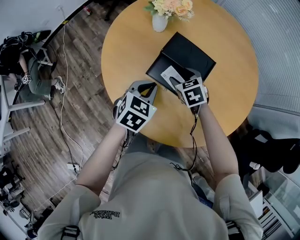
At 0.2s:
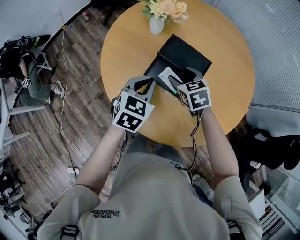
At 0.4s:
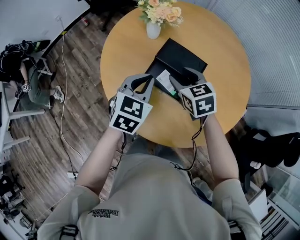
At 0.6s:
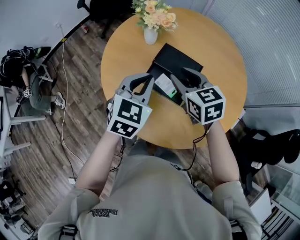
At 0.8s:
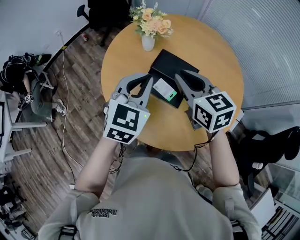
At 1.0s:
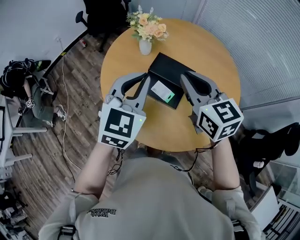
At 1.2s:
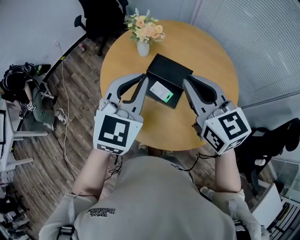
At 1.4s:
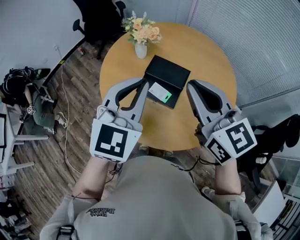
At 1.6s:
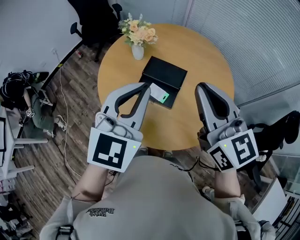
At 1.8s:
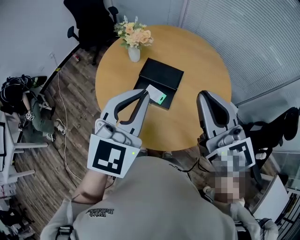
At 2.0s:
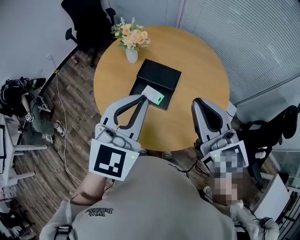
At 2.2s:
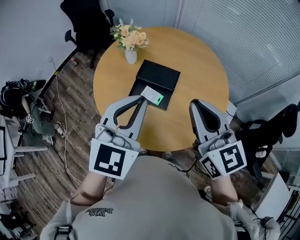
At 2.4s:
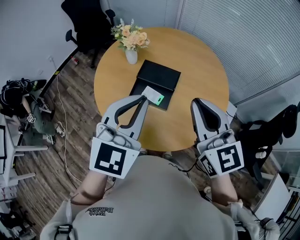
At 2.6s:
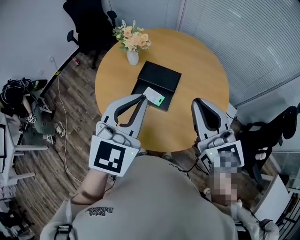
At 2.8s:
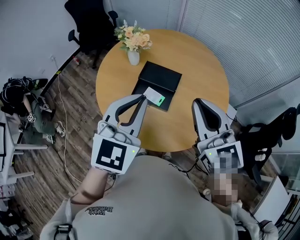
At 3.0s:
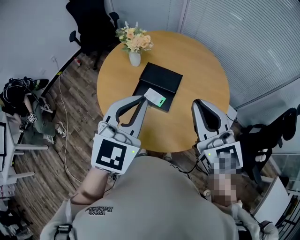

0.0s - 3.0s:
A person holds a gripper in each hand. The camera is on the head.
0.0s - 1.6s: The two grippers go roughly 35 cm upward. The left gripper angles its fingers upward, by about 40 degrees, while the right gripper points its fingers some 50 degrees further upward, and closes.
1.6s - 3.0s: The grippers move only a little.

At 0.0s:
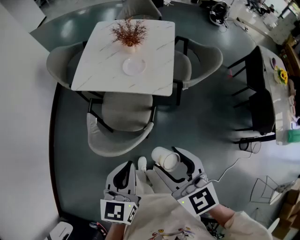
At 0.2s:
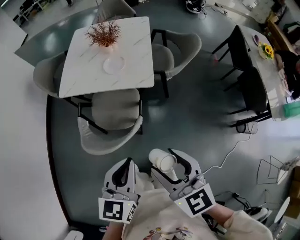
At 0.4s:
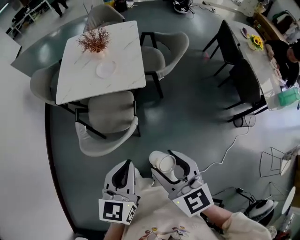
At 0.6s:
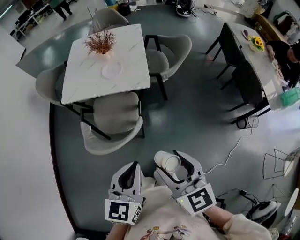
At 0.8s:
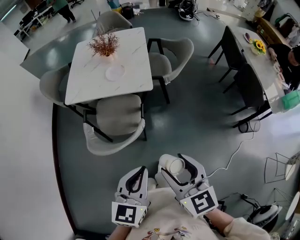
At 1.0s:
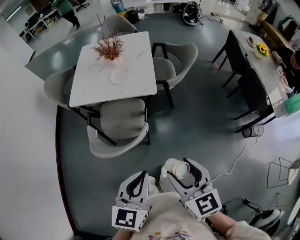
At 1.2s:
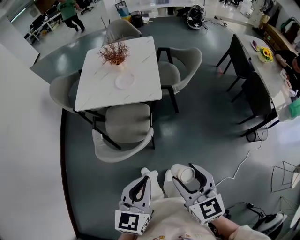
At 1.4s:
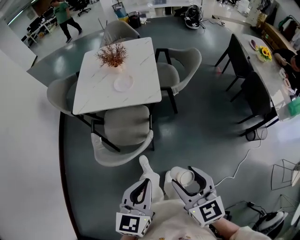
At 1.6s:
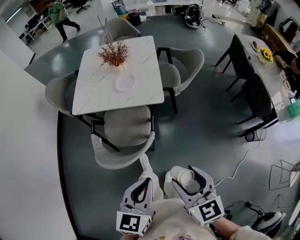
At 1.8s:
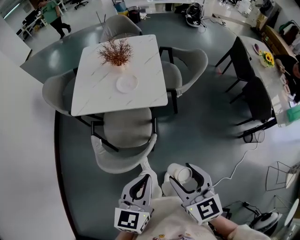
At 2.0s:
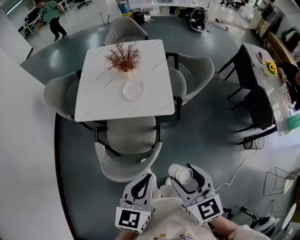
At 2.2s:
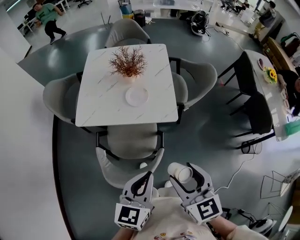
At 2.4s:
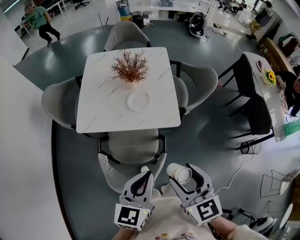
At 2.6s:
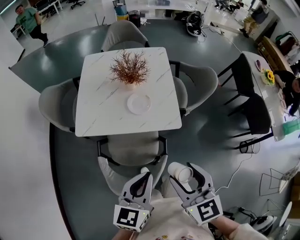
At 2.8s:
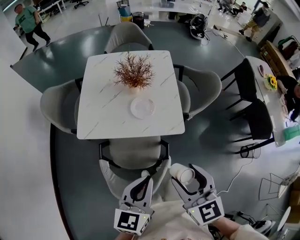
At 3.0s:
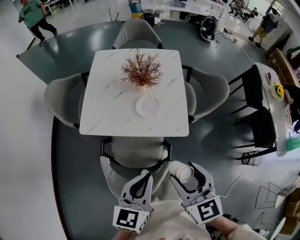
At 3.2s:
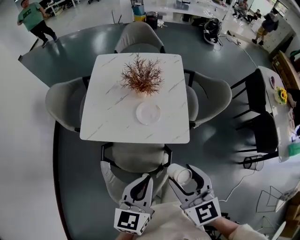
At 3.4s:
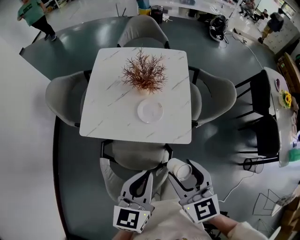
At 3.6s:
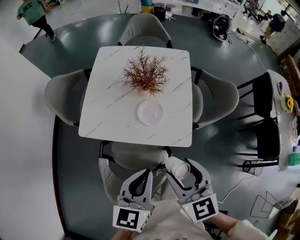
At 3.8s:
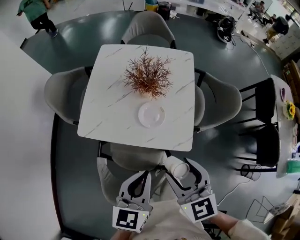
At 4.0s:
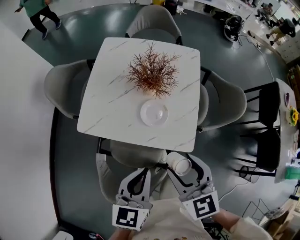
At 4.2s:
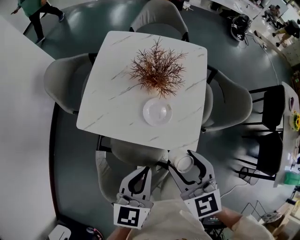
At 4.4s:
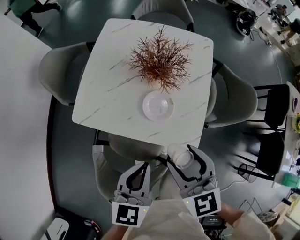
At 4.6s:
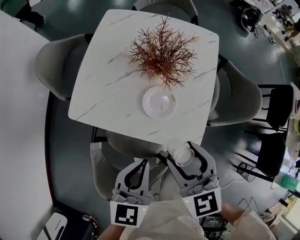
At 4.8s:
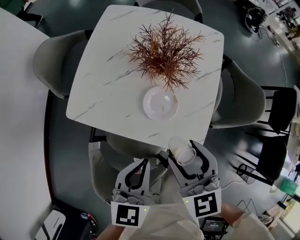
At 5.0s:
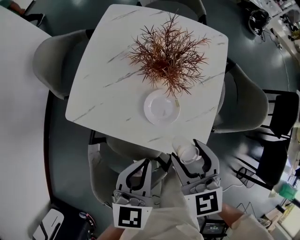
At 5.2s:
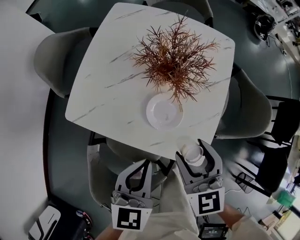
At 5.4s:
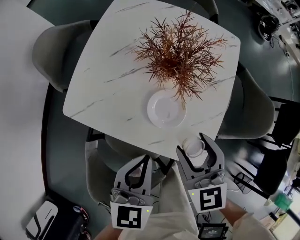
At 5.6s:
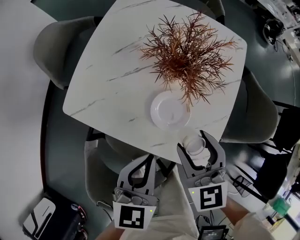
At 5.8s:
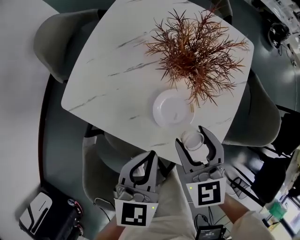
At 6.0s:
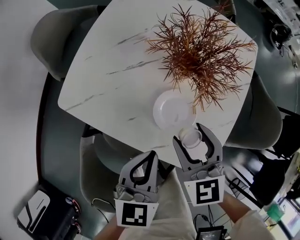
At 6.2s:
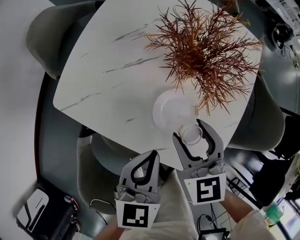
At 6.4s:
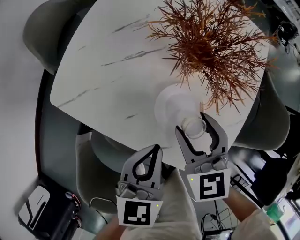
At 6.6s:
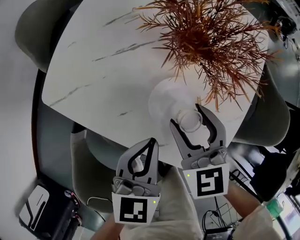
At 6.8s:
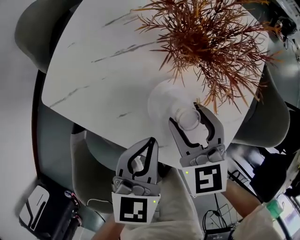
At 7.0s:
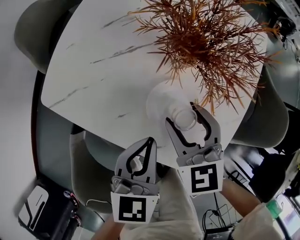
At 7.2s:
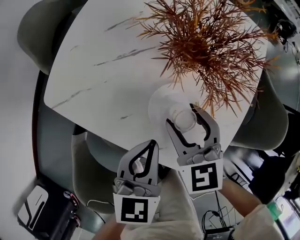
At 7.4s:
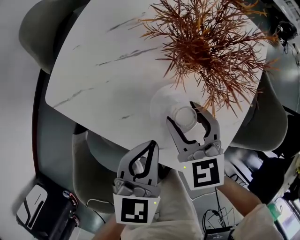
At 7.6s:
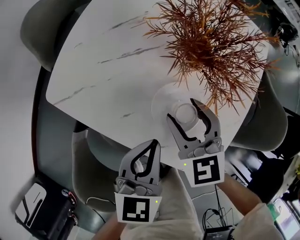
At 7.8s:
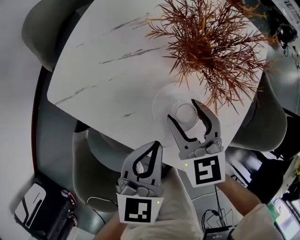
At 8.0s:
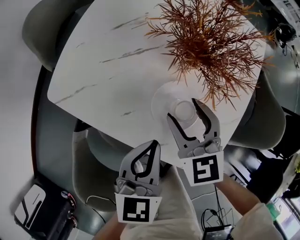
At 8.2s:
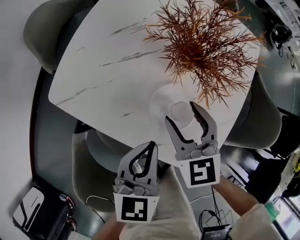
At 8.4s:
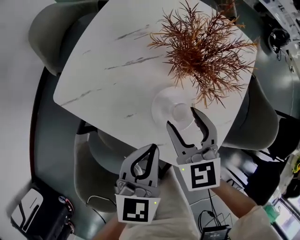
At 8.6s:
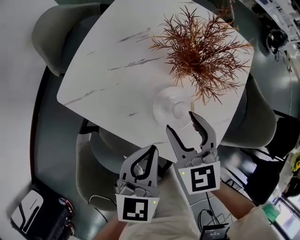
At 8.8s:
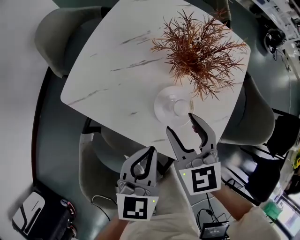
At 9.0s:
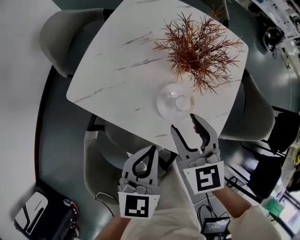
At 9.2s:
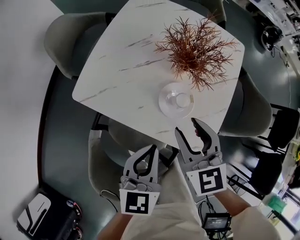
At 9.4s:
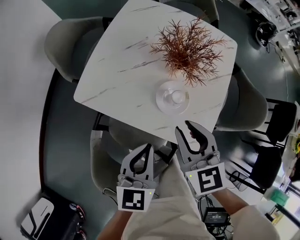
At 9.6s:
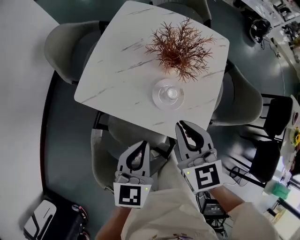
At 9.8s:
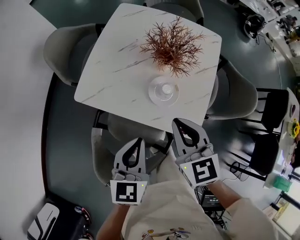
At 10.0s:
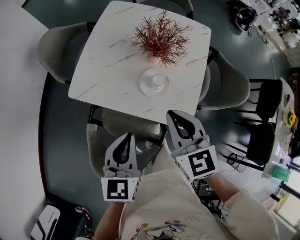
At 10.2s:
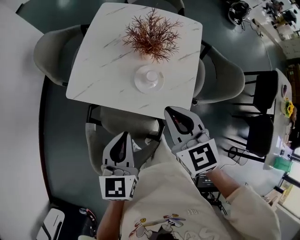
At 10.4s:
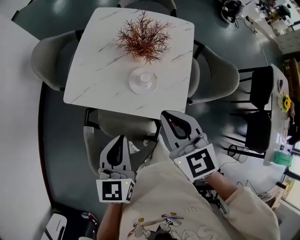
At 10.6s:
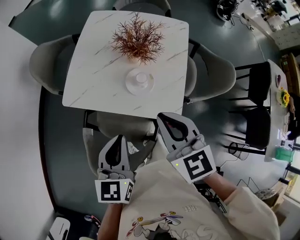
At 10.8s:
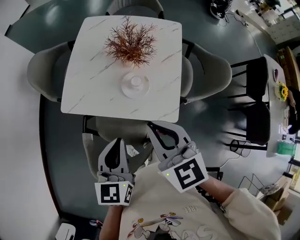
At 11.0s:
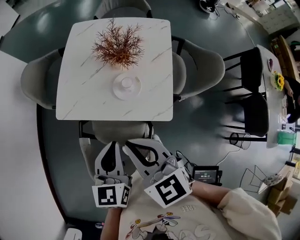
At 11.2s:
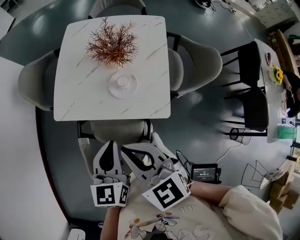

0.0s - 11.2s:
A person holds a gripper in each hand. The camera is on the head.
0.0s - 1.6s: The left gripper is displaced backward by roughly 5 cm, while the right gripper heads backward and to the right, covering roughly 10 cm.
1.6s - 3.2s: The two grippers go about 30 cm forward and to the left.
3.2s - 4.8s: Both grippers travel together forward and downward, roughly 20 cm.
4.8s - 6.4s: Both grippers move downward and forward, roughly 15 cm.
6.4s - 8.0s: The grippers stay close to where they were, moving slightly.
8.0s - 9.6s: The right gripper is displaced upward and backward by approximately 20 cm, and closes its fingers. The left gripper heads upward, backward and to the left, covering approximately 15 cm.
9.6s - 11.2s: The right gripper is displaced backward and upward by approximately 15 cm, while the left gripper shifts approximately 10 cm upward and backward.

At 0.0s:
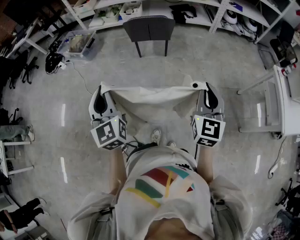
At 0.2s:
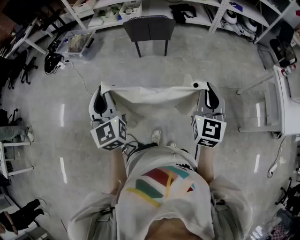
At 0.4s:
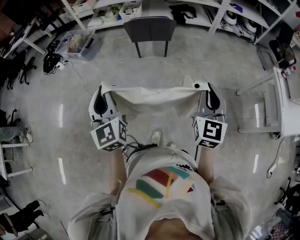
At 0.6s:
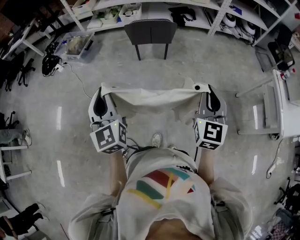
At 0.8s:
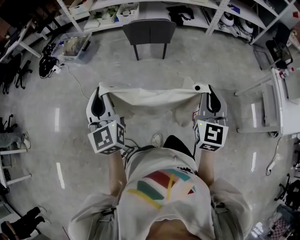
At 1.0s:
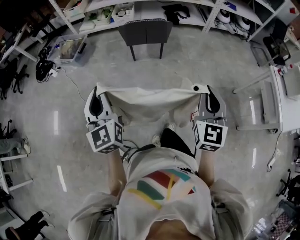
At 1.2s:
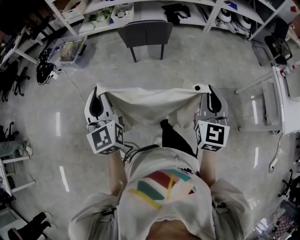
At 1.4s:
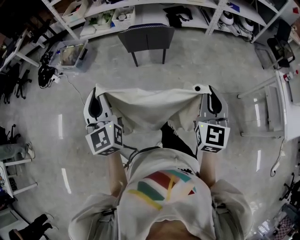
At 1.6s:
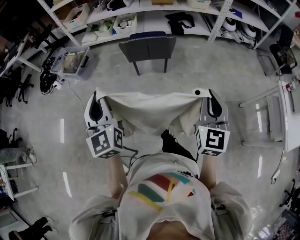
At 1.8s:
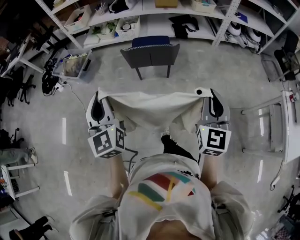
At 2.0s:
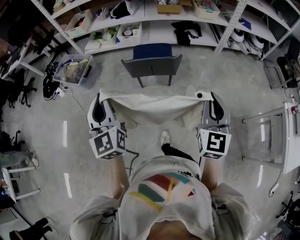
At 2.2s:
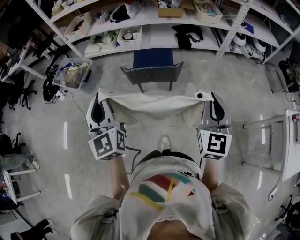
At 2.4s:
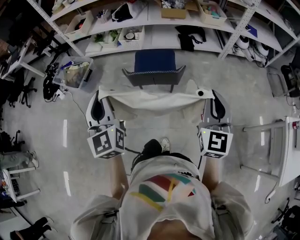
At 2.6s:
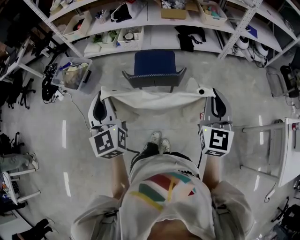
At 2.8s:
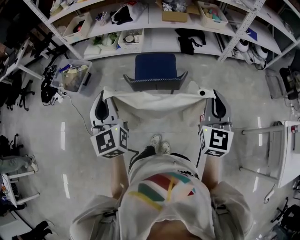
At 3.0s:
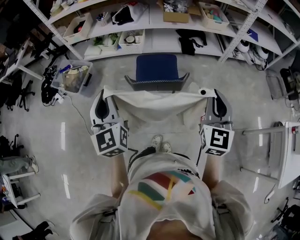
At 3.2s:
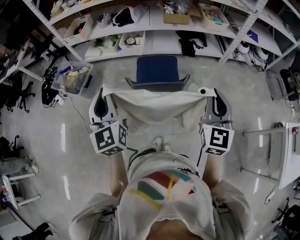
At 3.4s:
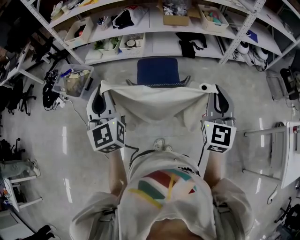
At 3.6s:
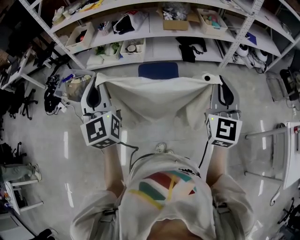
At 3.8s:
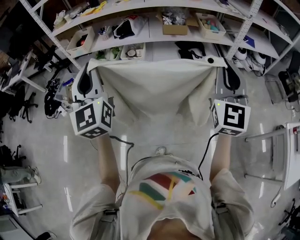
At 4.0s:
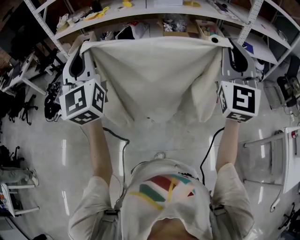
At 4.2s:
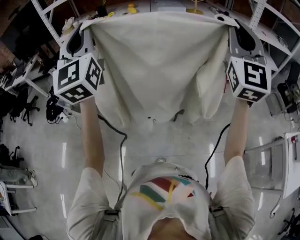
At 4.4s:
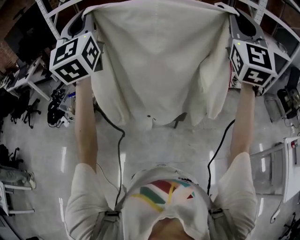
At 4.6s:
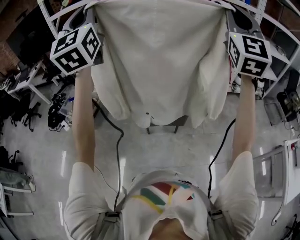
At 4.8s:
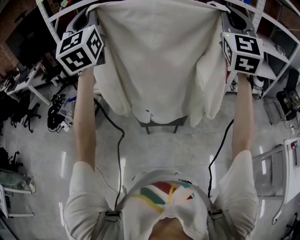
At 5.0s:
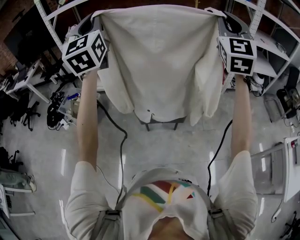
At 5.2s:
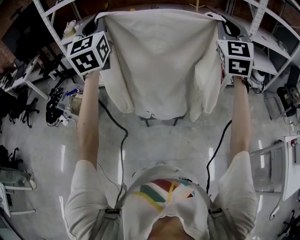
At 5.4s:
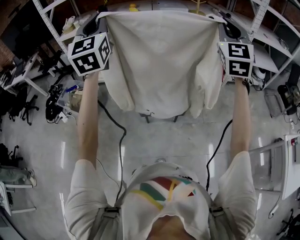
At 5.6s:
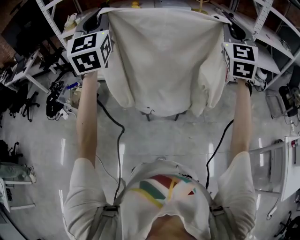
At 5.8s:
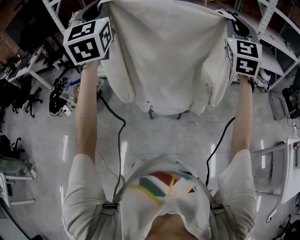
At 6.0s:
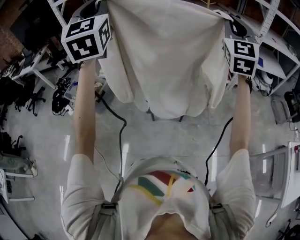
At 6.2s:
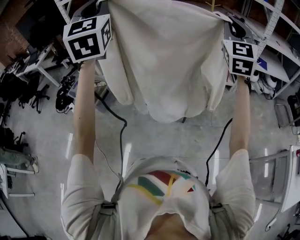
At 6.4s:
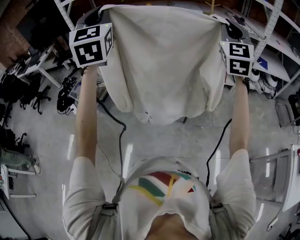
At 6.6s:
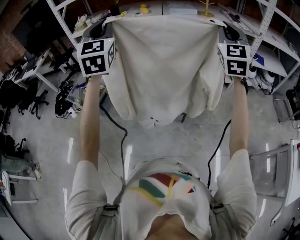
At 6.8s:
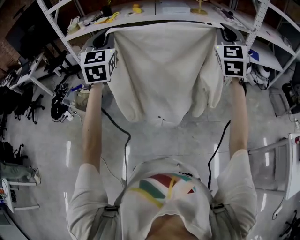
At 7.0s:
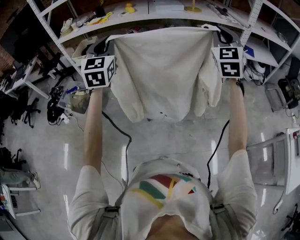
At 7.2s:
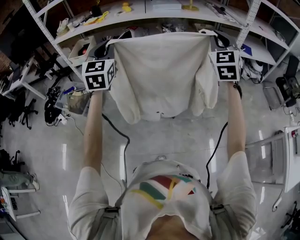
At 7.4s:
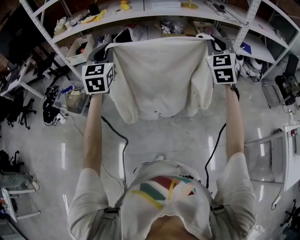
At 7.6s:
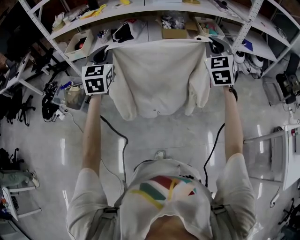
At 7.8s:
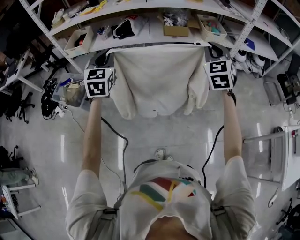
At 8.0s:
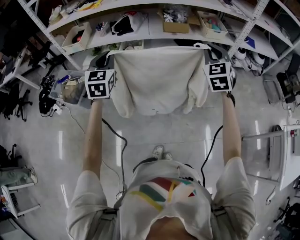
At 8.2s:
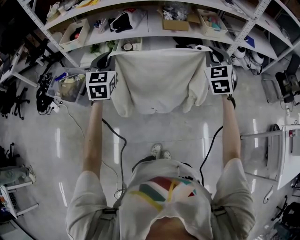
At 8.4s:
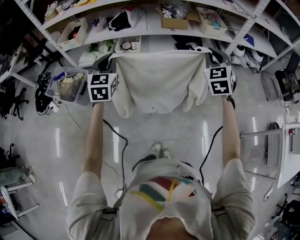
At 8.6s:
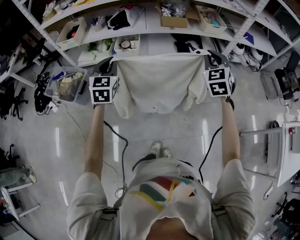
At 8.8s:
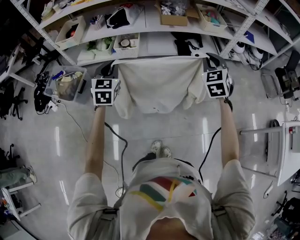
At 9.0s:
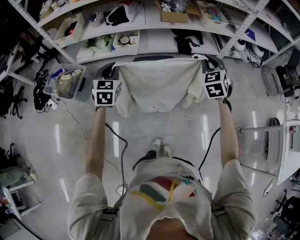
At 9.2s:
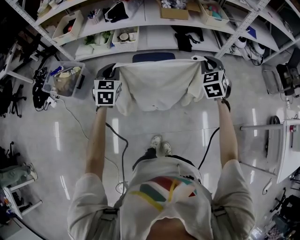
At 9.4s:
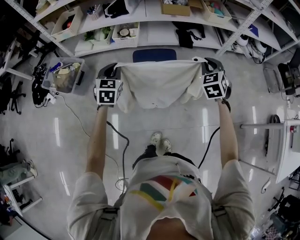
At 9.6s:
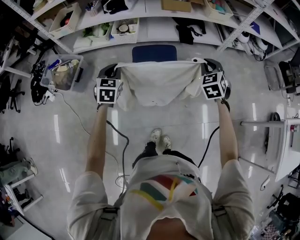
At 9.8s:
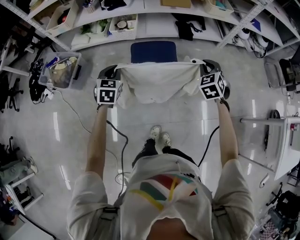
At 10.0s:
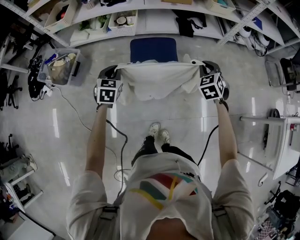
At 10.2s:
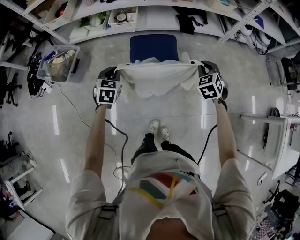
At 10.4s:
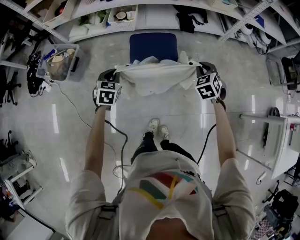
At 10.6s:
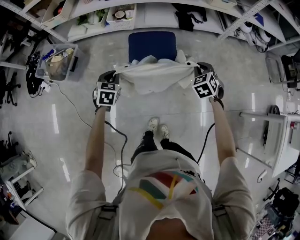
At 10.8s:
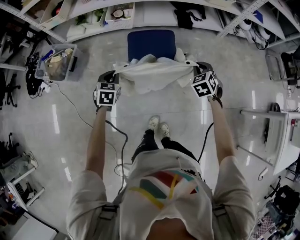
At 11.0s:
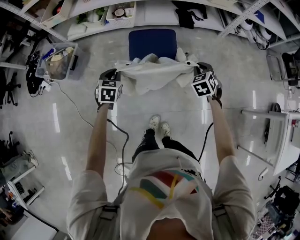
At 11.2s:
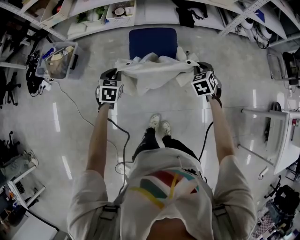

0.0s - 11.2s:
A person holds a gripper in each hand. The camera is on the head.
0.0s - 1.6s: The grippers both shift forward by some 20 cm.
1.6s - 3.2s: The grippers both shift forward by roughly 30 cm.
3.2s - 4.8s: The right gripper heads upward, covering roughly 35 cm, and rotates some 30 degrees; the left gripper goes about 35 cm upward and forward, and changes its angle by some 30 degrees.
4.8s - 6.4s: The left gripper moves downward, roughly 5 cm, and rotates some 20 degrees. The right gripper is displaced downward by some 10 cm.
6.4s - 8.0s: Both grippers move downward, some 25 cm. The left gripper rotates approximately 30 degrees; the right gripper changes its angle by some 30 degrees.
8.0s - 9.6s: The grippers both shift downward by some 20 cm. The left gripper swivels about 20 degrees, while the right gripper changes its angle by some 20 degrees.
9.6s - 11.2s: The left gripper goes about 15 cm downward and backward; the right gripper goes about 15 cm downward.
